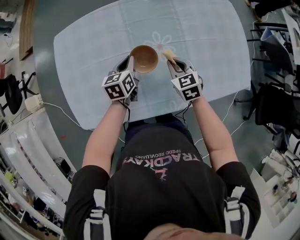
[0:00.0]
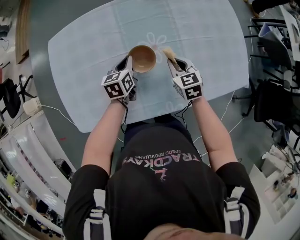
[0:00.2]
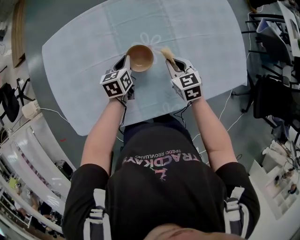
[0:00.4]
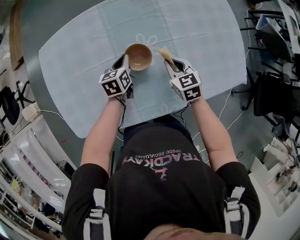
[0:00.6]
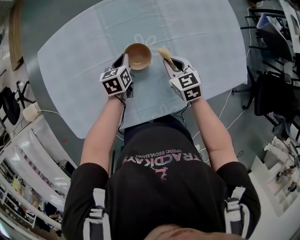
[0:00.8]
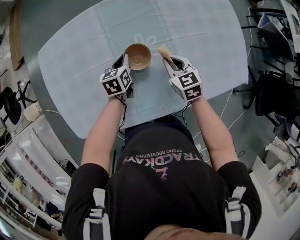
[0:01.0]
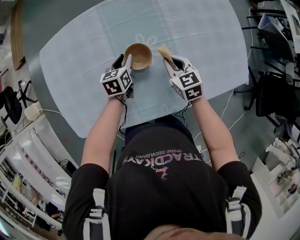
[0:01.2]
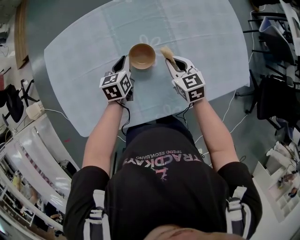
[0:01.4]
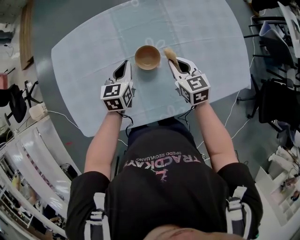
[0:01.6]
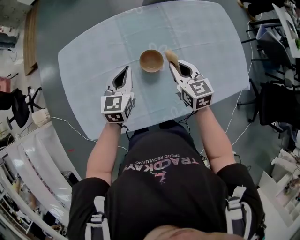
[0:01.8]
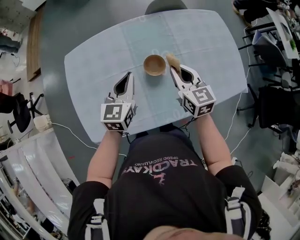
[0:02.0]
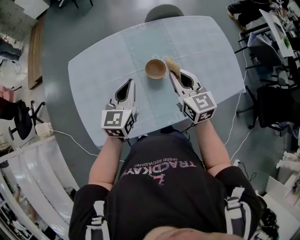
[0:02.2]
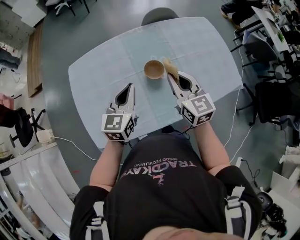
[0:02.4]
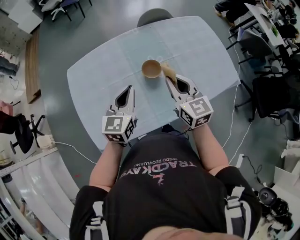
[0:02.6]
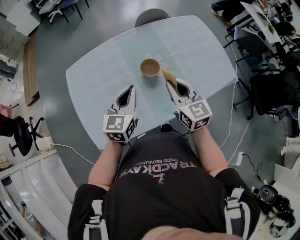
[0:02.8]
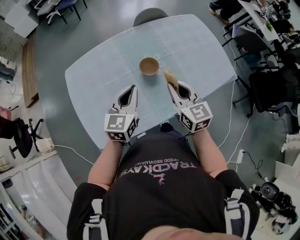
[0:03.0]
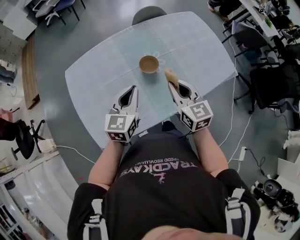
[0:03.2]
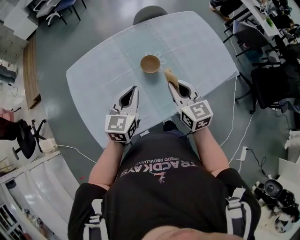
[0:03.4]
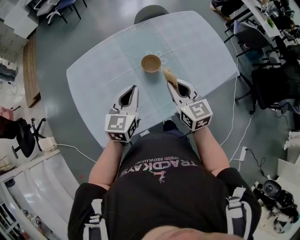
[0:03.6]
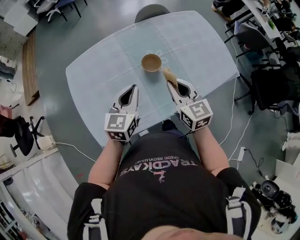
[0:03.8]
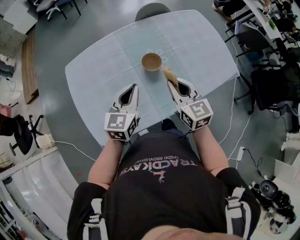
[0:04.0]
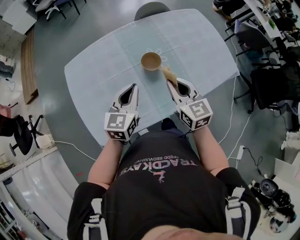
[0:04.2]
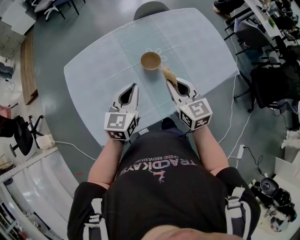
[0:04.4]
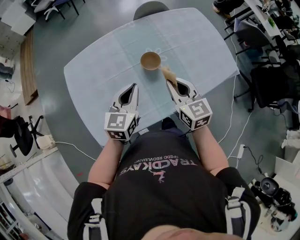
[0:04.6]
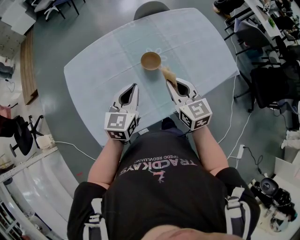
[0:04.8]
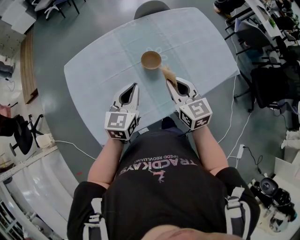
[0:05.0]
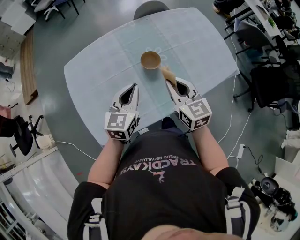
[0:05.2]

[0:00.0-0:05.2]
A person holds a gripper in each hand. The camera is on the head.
0:00.0 to 0:01.8: Both grippers move upward, about 10 cm. The right gripper changes its angle by about 20 degrees. The left gripper rotates about 30 degrees, and opens and closes again.
0:01.8 to 0:03.4: Both grippers move backward and upward, about 15 cm.
0:03.4 to 0:05.2: The grippers move only a little.

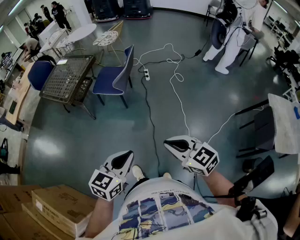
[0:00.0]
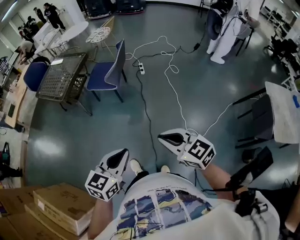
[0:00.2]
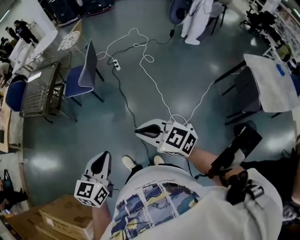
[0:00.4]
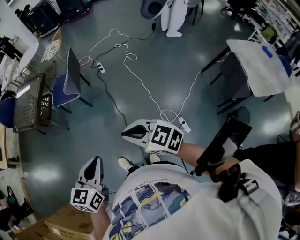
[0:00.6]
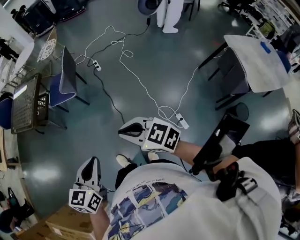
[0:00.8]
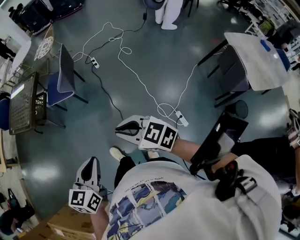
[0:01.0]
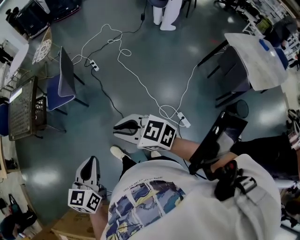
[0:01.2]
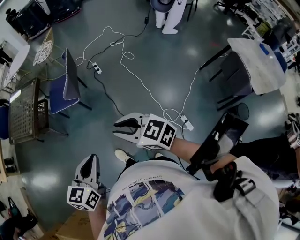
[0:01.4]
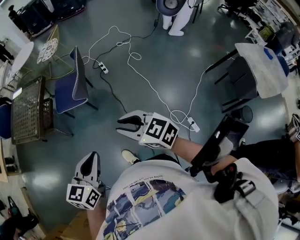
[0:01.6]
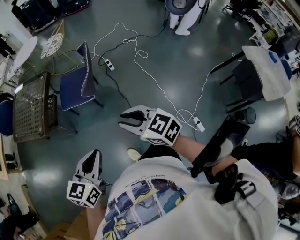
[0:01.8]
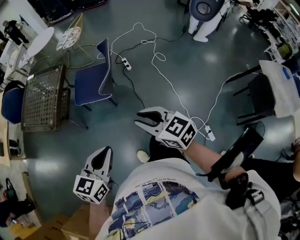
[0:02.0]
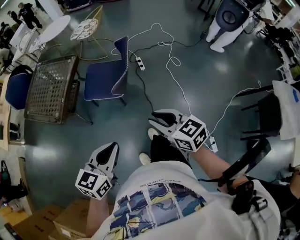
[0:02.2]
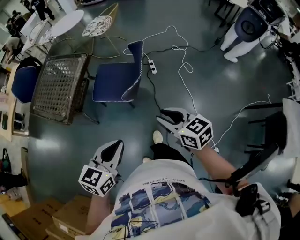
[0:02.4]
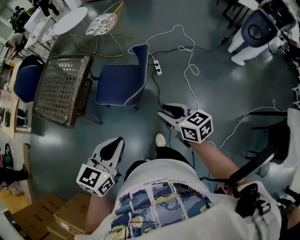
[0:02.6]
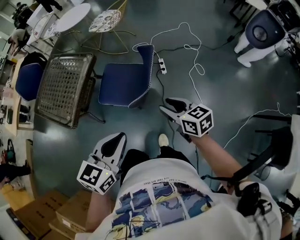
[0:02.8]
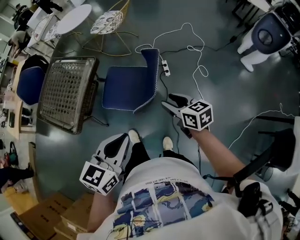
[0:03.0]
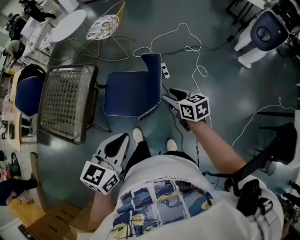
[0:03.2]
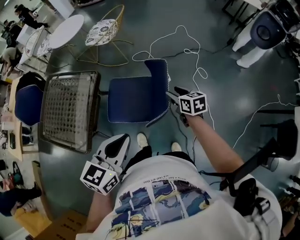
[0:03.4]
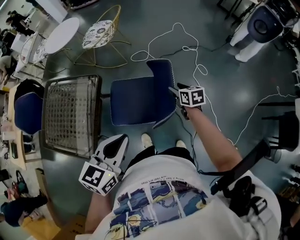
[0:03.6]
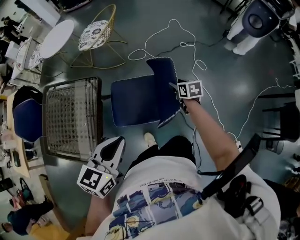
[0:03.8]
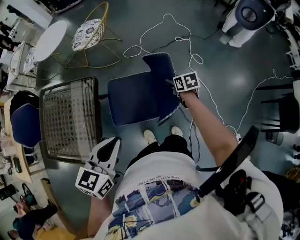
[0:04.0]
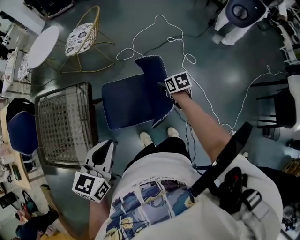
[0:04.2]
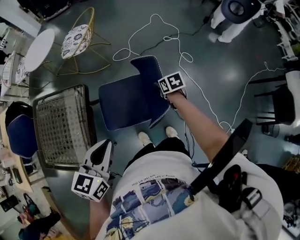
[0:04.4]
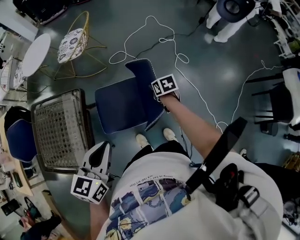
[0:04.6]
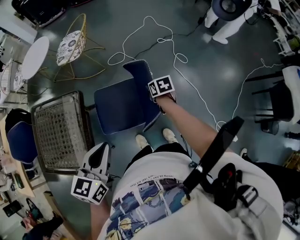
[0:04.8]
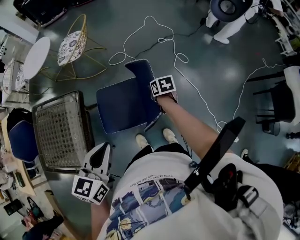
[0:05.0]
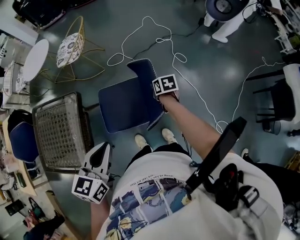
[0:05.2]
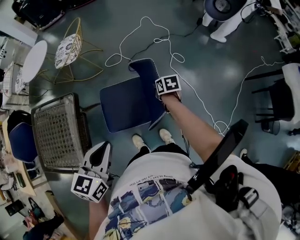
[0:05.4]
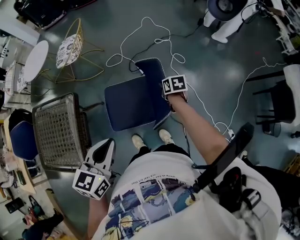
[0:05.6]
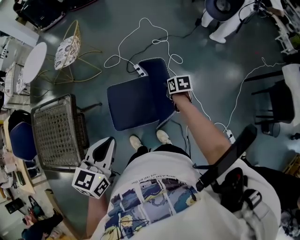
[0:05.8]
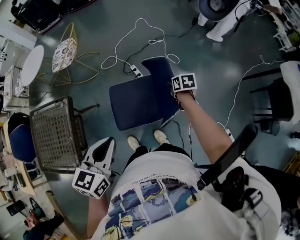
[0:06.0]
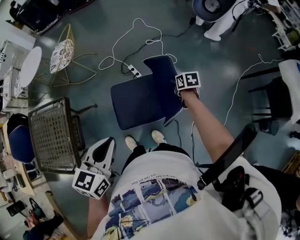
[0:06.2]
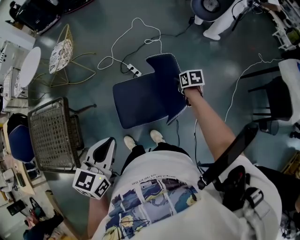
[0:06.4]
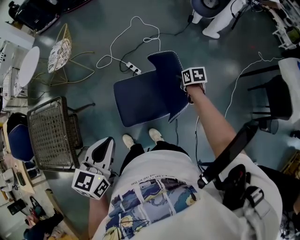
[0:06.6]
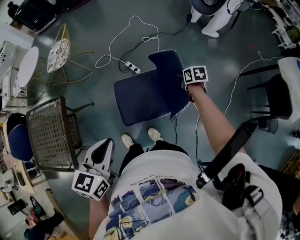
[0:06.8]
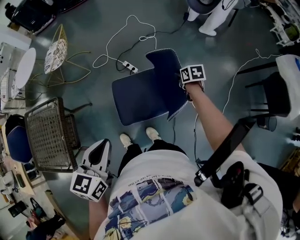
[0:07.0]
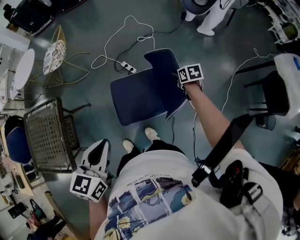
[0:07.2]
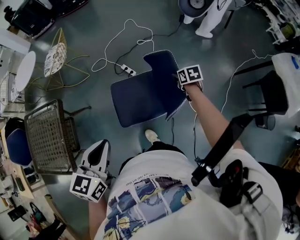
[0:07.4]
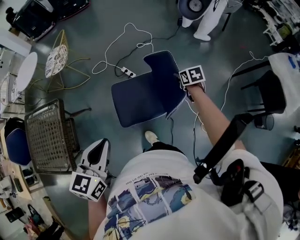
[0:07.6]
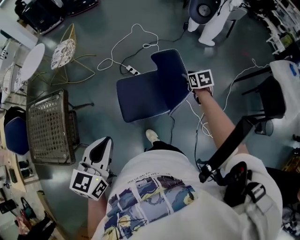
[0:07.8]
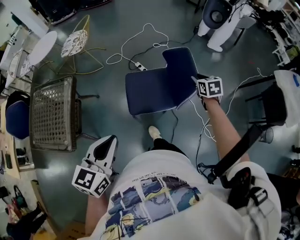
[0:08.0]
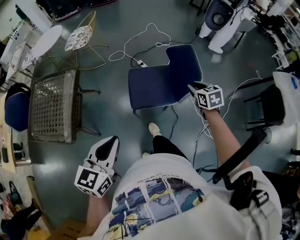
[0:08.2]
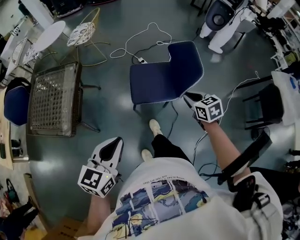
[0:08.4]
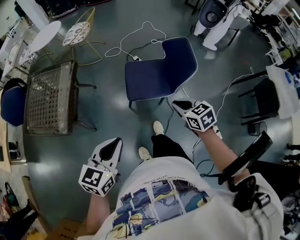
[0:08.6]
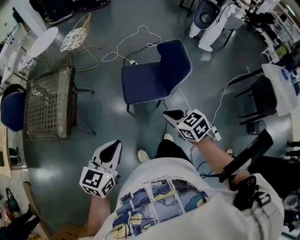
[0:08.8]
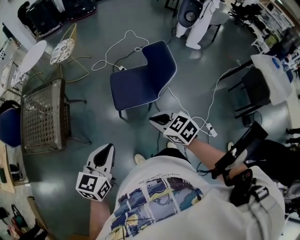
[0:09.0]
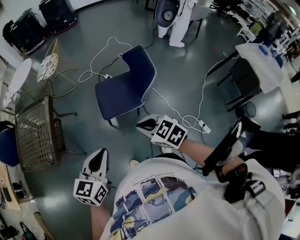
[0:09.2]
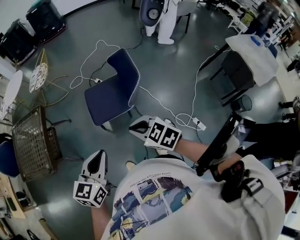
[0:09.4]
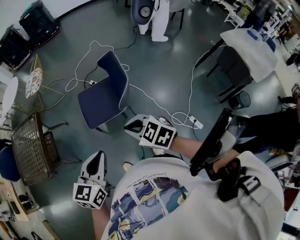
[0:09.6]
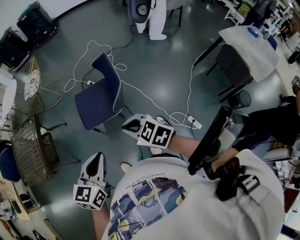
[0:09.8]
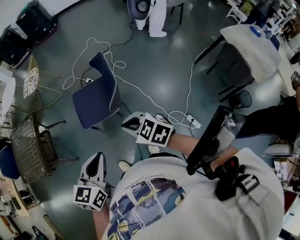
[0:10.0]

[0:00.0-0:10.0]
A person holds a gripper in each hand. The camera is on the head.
0:00.0 to 0:01.4: The grippers both shift forward by approximately 10 cm.
0:01.4 to 0:02.8: Both grippers travel together forward, some 40 cm.
0:02.8 to 0:04.2: The left gripper moves to the left and forward, some 30 cm. Meanwhile the right gripper shifts some 30 cm forward and downward, and swivels approximately 40 degrees.
0:04.2 to 0:05.8: Both grippers travel together to the right, some 20 cm. The right gripper closes.
0:05.8 to 0:07.2: The right gripper is displaced to the right by roughly 20 cm, while the left gripper moves to the right, about 10 cm.
0:07.2 to 0:08.6: The right gripper is displaced backward, to the left and upward by roughly 50 cm, and rotates about 40 degrees; the left gripper shifts about 30 cm backward.
0:08.6 to 0:10.0: The right gripper goes some 20 cm to the right, while the left gripper moves to the right, roughly 35 cm.

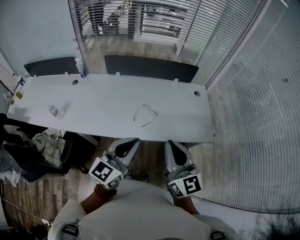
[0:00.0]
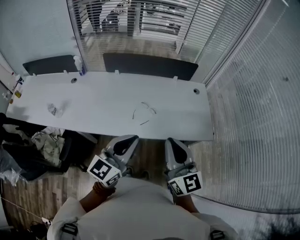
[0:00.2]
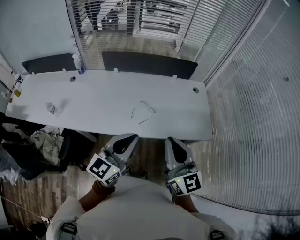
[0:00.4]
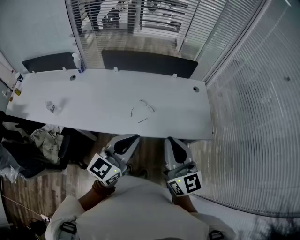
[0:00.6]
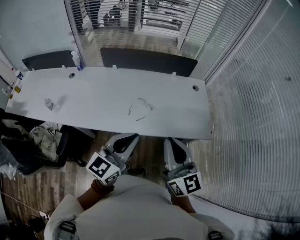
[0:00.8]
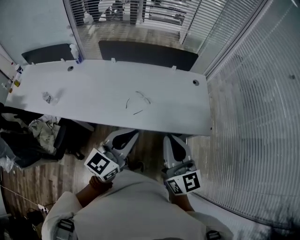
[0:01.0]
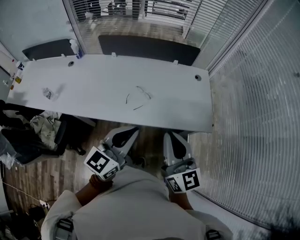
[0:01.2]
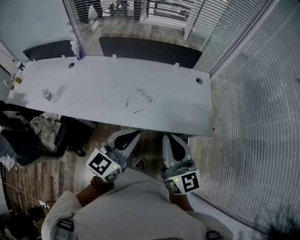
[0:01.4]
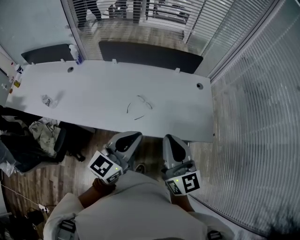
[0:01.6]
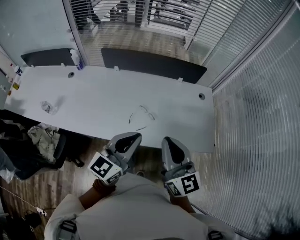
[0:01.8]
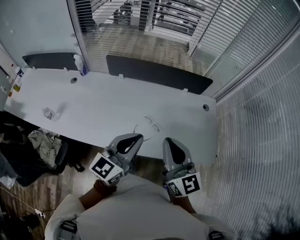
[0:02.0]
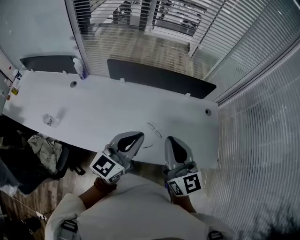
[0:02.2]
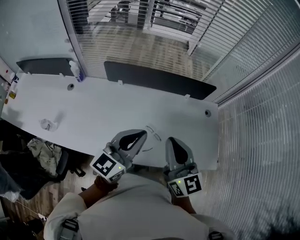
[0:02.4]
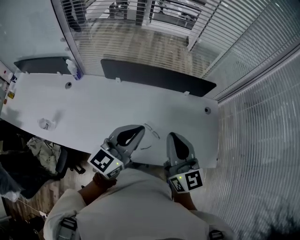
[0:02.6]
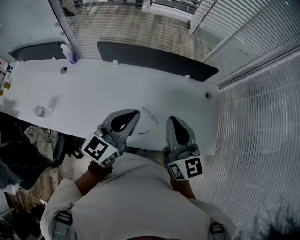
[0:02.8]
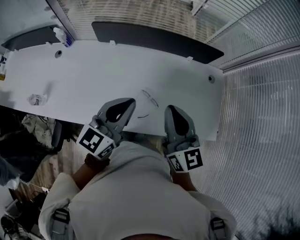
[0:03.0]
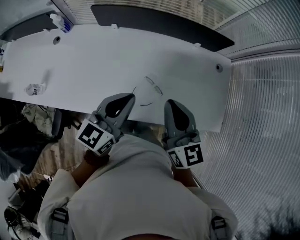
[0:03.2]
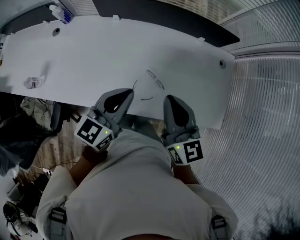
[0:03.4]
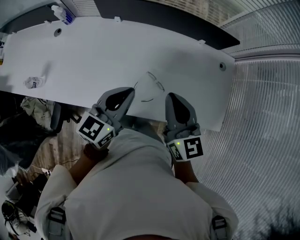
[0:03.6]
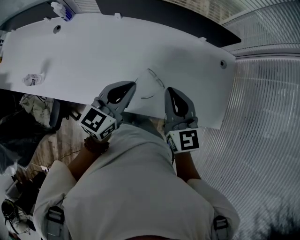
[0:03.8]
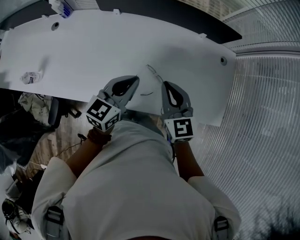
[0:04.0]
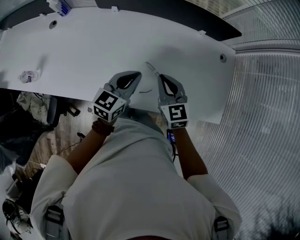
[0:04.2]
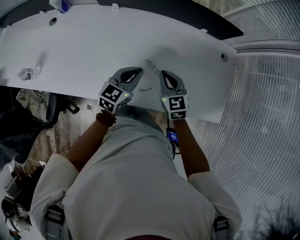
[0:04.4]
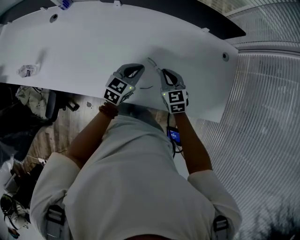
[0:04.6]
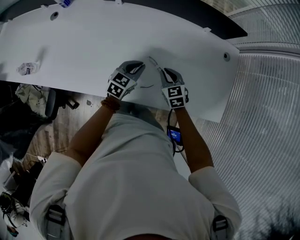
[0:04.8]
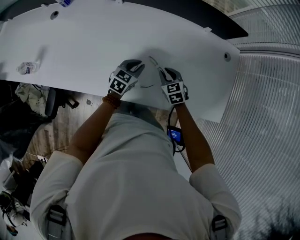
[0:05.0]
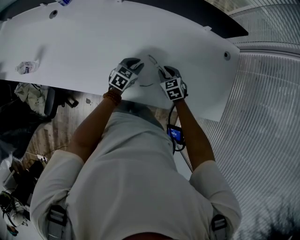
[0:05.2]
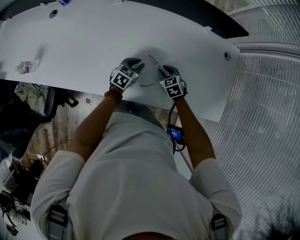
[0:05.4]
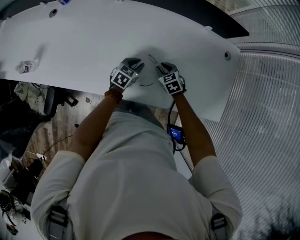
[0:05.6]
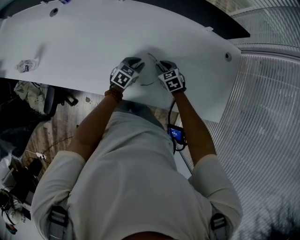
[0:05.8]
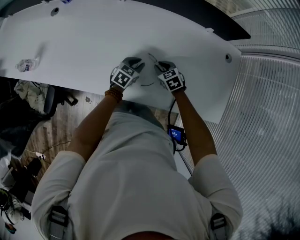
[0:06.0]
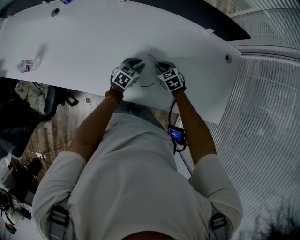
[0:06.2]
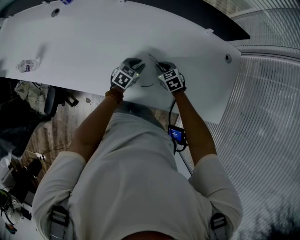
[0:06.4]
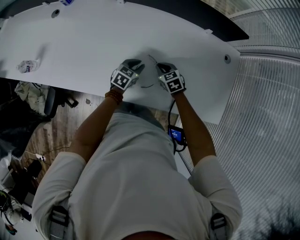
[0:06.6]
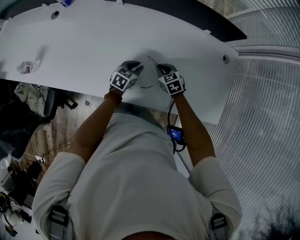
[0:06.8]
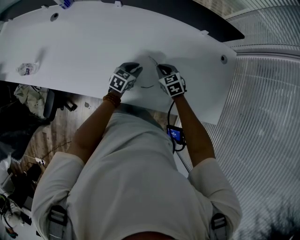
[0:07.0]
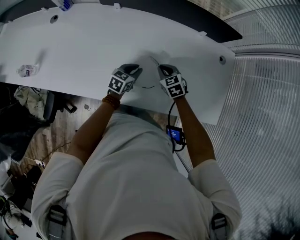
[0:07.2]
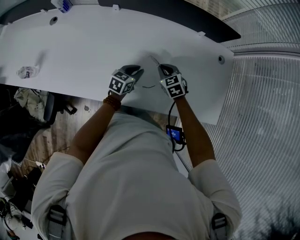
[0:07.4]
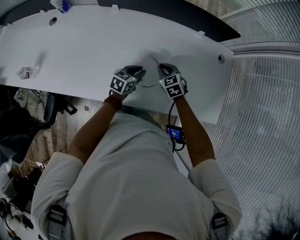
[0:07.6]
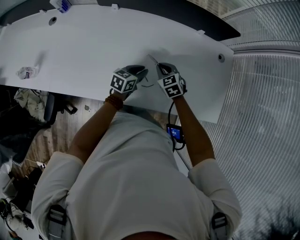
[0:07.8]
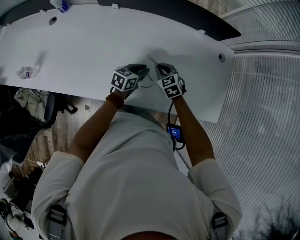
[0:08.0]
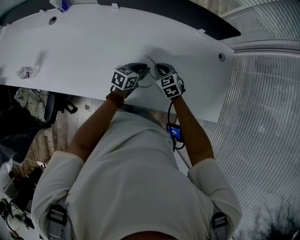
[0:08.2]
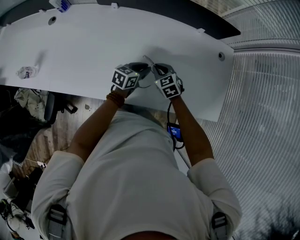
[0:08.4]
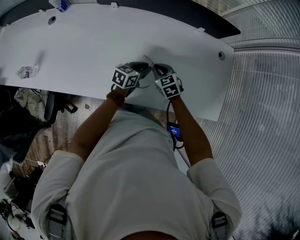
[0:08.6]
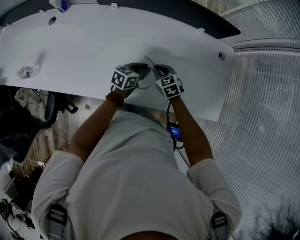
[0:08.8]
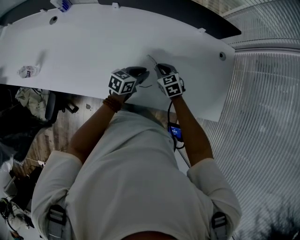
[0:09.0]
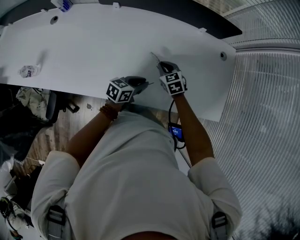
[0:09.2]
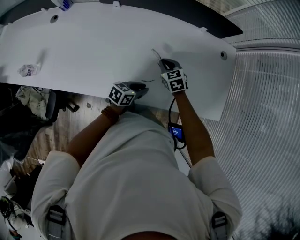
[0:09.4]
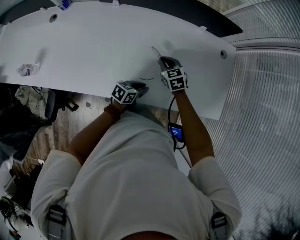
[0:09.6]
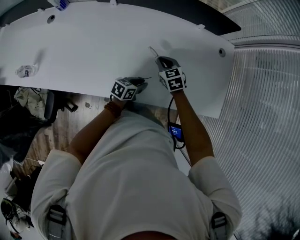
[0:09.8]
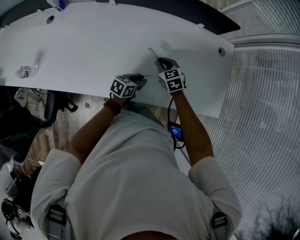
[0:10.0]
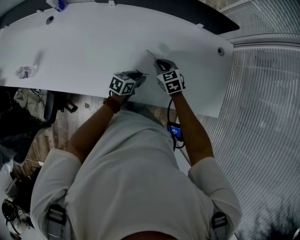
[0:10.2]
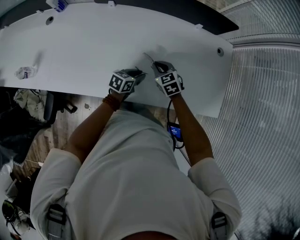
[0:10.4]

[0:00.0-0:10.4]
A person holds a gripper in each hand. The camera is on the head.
0:00.0 to 0:01.4: The two grippers go roughly 5 cm to the right.
0:01.4 to 0:03.0: Both grippers move forward and to the left, some 30 cm.
0:03.0 to 0:04.4: The two grippers go approximately 25 cm downward. The right gripper turns by about 30 degrees.
0:04.4 to 0:06.0: Both grippers travel together downward, about 15 cm. The left gripper rotates some 20 degrees. Meanwhile the right gripper rotates some 30 degrees, and opens its fingers.
0:06.0 to 0:07.4: The right gripper goes approximately 5 cm upward.
0:07.4 to 0:09.0: There are only small adjustments of the grippers.
0:09.0 to 0:10.4: The left gripper goes about 5 cm downward, and moves roughly 10 cm backward and comes back.
